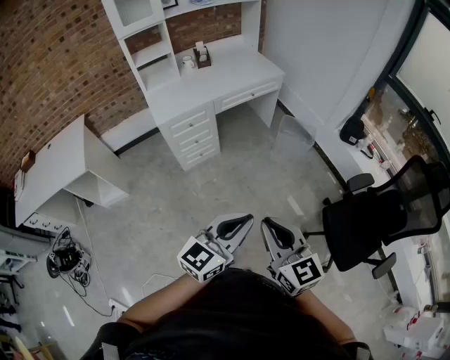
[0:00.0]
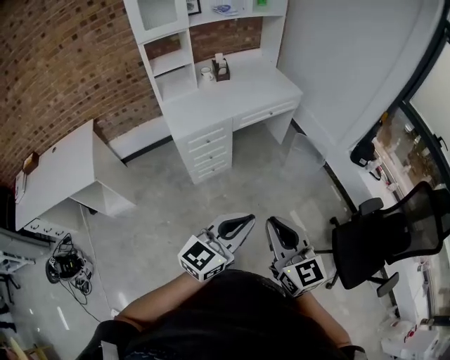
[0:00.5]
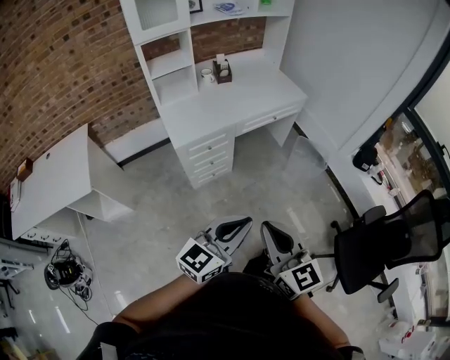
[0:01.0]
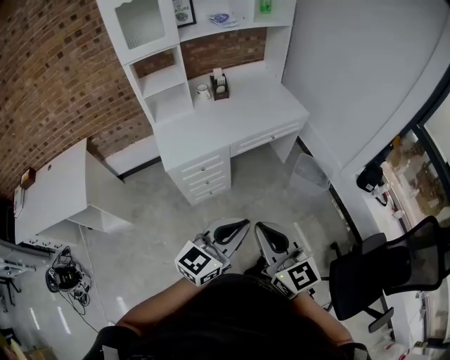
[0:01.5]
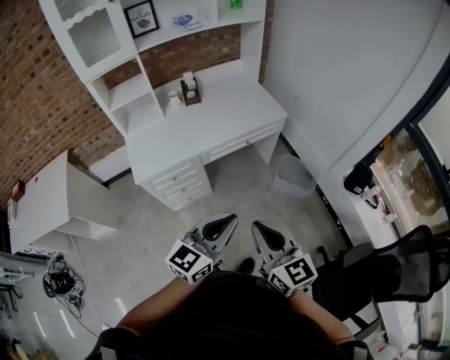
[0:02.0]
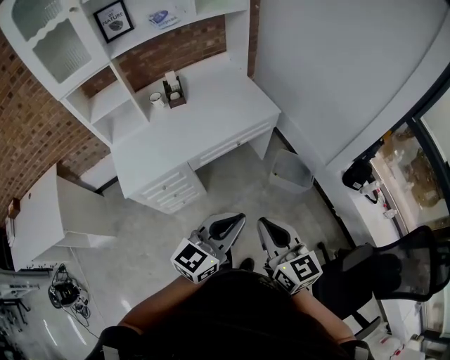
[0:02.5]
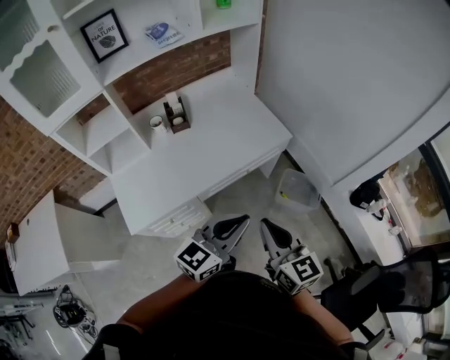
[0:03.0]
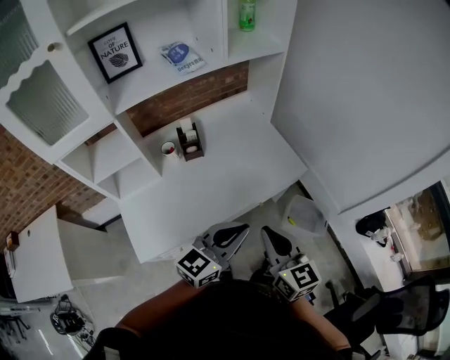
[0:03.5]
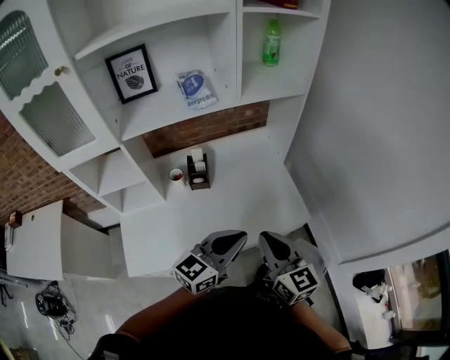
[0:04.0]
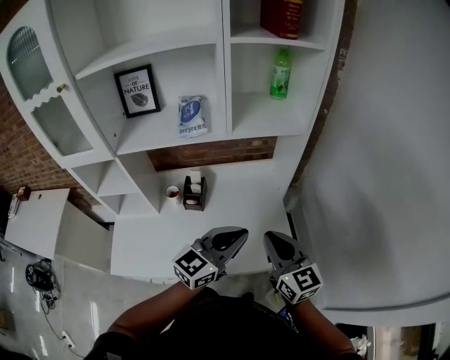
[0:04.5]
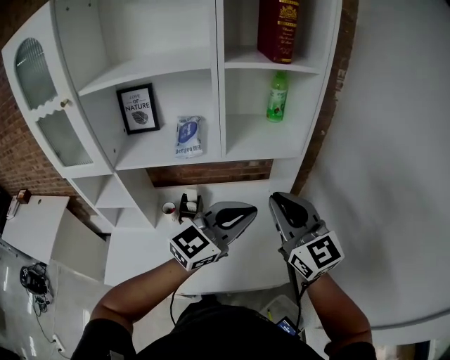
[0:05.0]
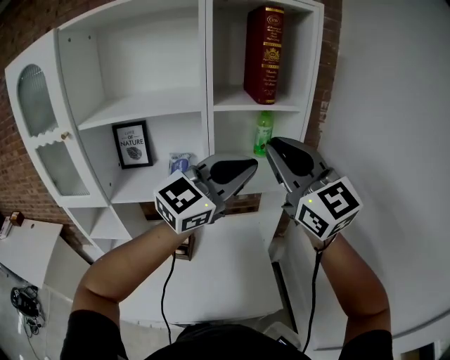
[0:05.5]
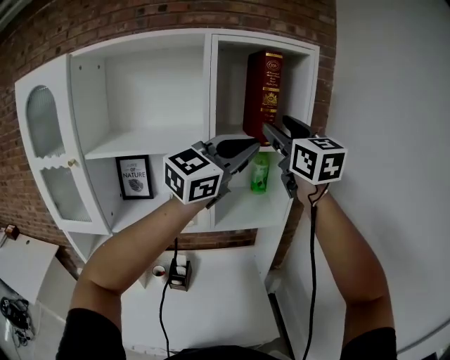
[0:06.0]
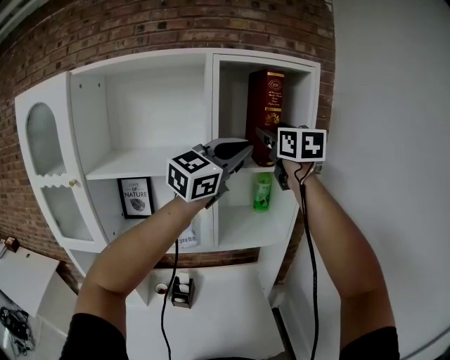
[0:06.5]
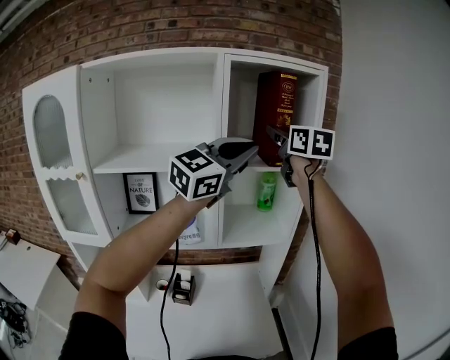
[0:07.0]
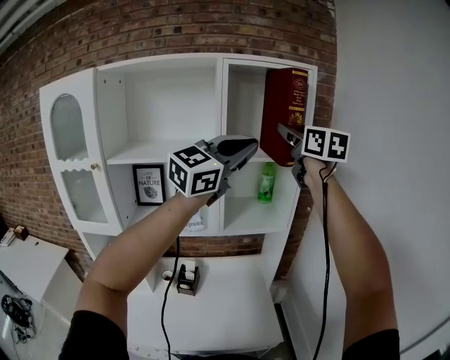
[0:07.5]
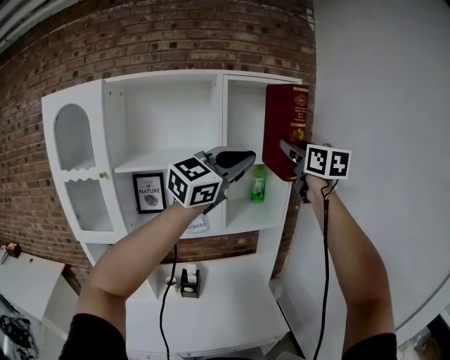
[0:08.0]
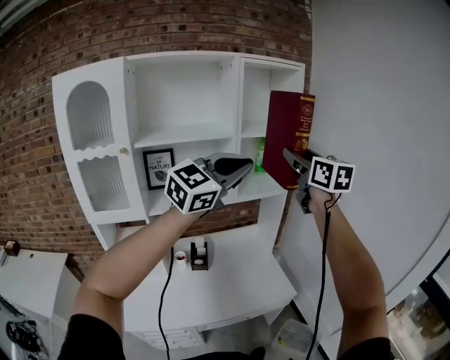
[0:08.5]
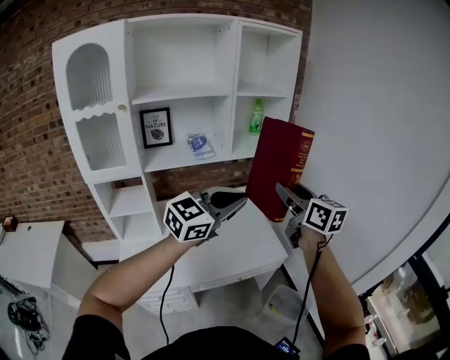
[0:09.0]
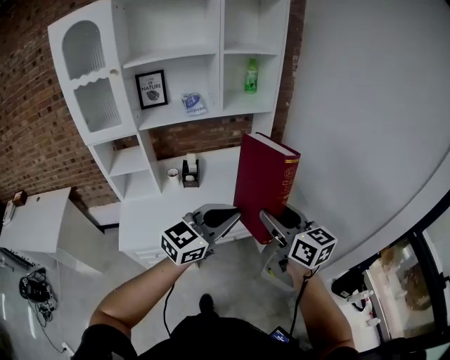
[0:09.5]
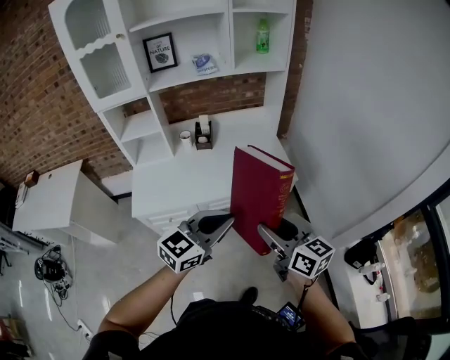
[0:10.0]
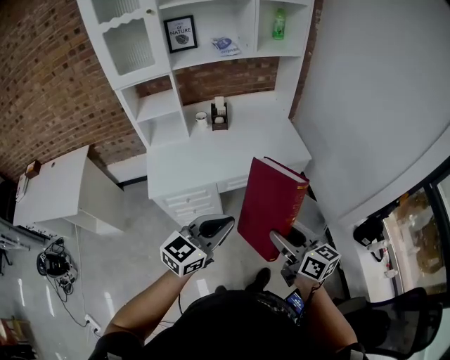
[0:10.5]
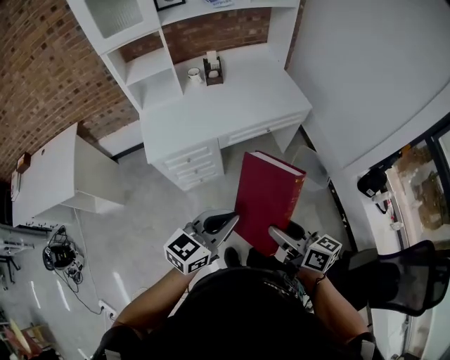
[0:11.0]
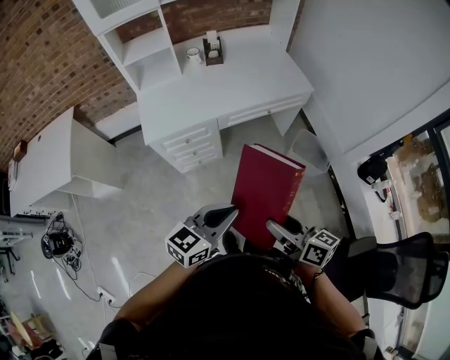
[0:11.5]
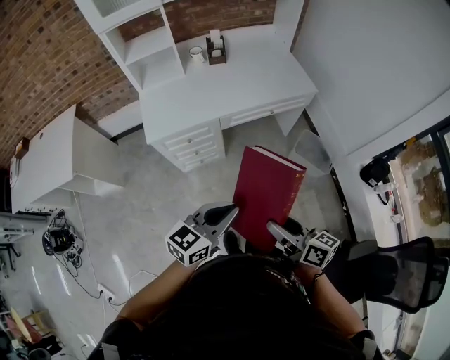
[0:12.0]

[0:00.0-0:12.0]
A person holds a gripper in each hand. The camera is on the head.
0.0 to 2.0 s: Both grippers travel together forward, about 40 cm.
2.0 to 4.0 s: Both grippers are carried forward, about 50 cm.
4.0 to 6.0 s: Both grippers move upward and forward, roughly 60 cm. The right gripper swivels roughly 30 degrees, and opens up. The left gripper turns by roughly 40 degrees.
6.0 to 8.0 s: The right gripper moves backward and to the right, approximately 10 cm, while the left gripper travels backward by some 15 cm.
8.0 to 10.0 s: Both grippers are carried backward, roughly 50 cm. Both grippers travel together downward, approximately 50 cm. The left gripper rotates roughly 40 degrees. Meanwhile the right gripper swivels some 40 degrees.
10.0 to 12.0 s: The right gripper heads backward, downward and to the left, covering some 35 cm, and swivels approximately 30 degrees, while the left gripper goes about 30 cm backward, to the left and downward.

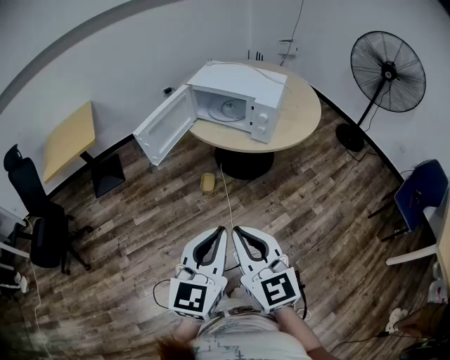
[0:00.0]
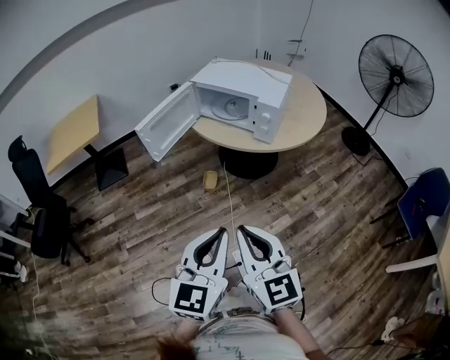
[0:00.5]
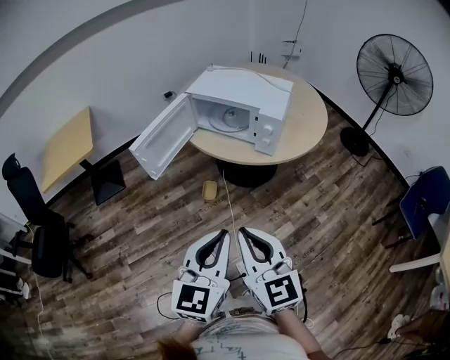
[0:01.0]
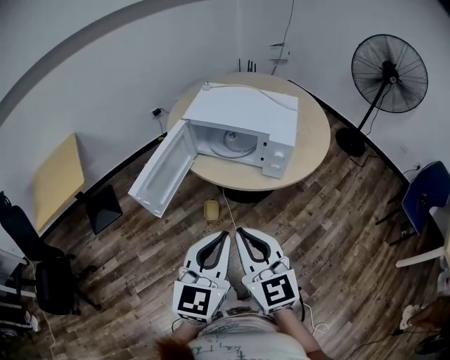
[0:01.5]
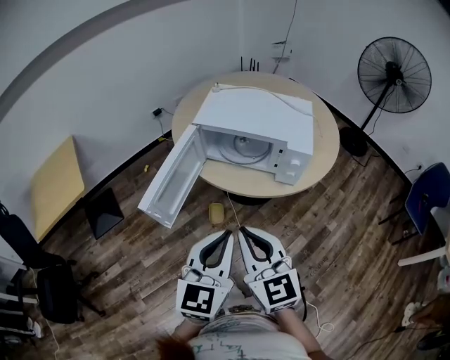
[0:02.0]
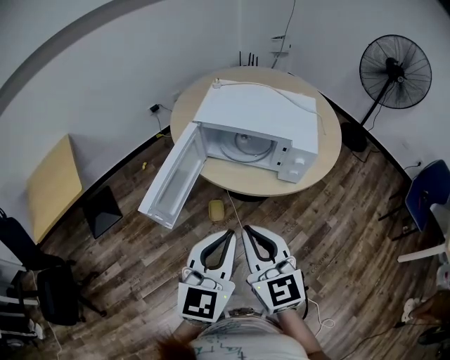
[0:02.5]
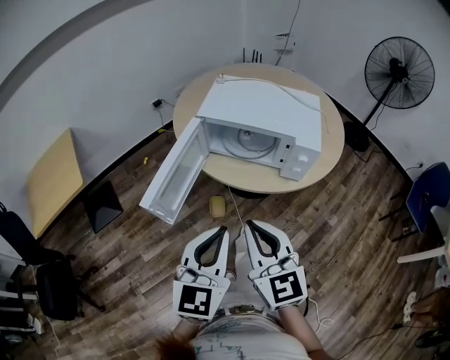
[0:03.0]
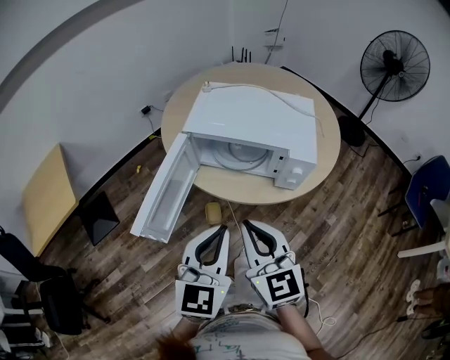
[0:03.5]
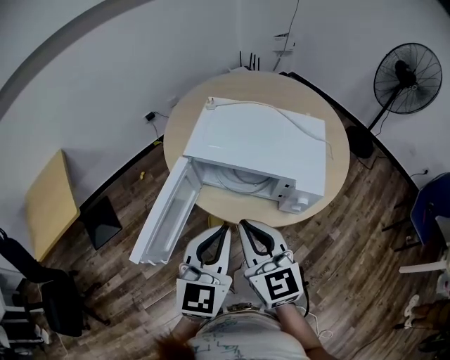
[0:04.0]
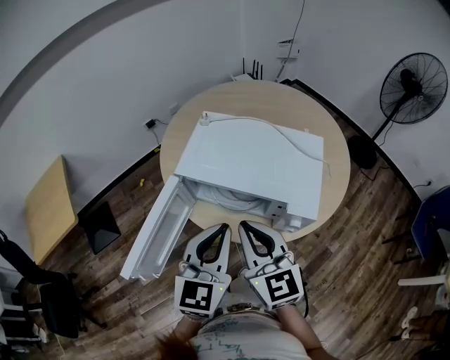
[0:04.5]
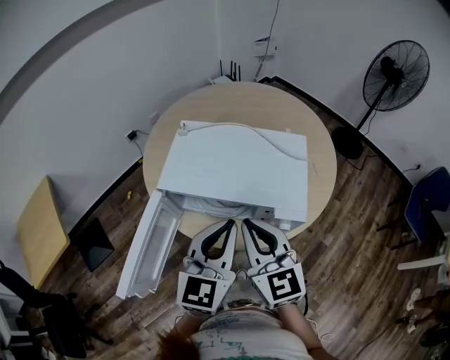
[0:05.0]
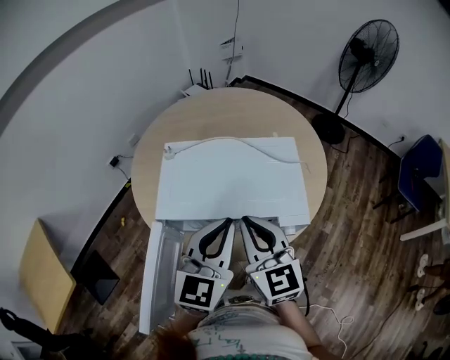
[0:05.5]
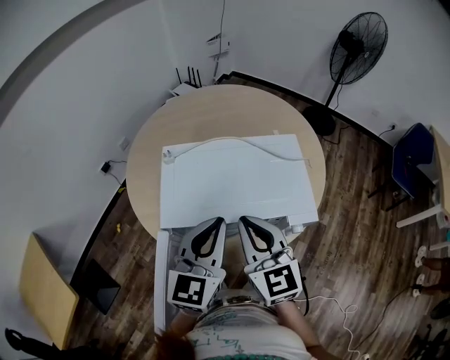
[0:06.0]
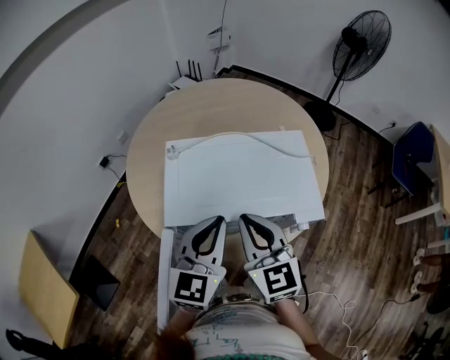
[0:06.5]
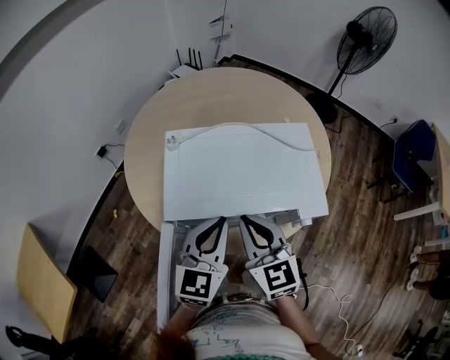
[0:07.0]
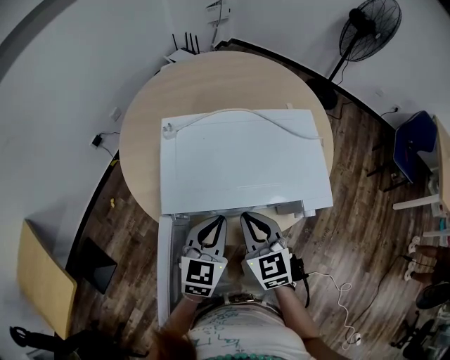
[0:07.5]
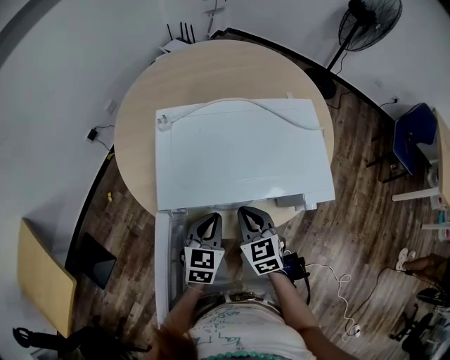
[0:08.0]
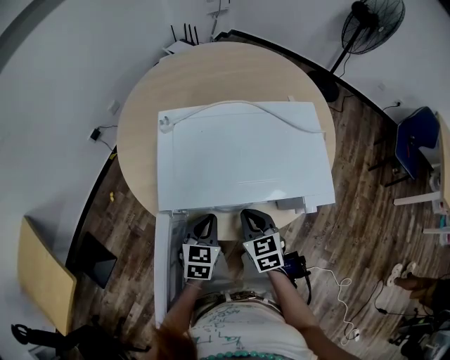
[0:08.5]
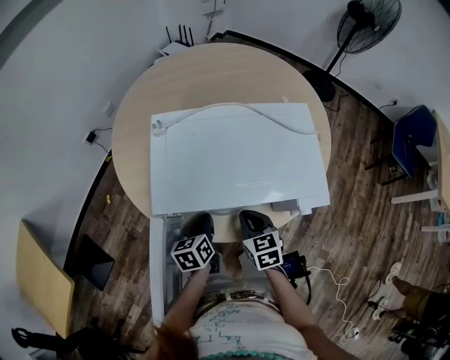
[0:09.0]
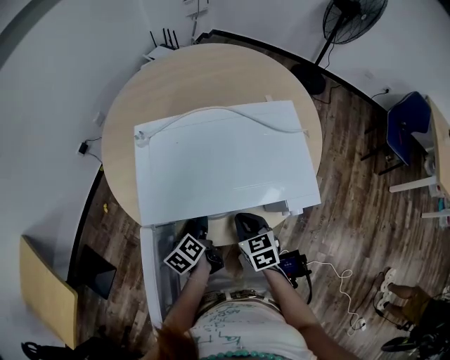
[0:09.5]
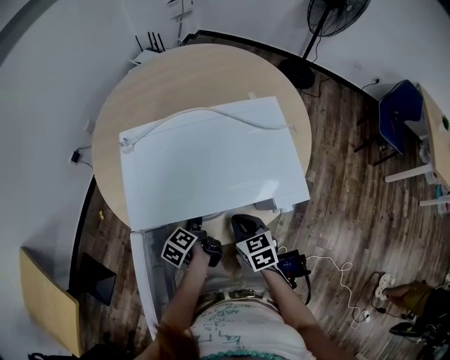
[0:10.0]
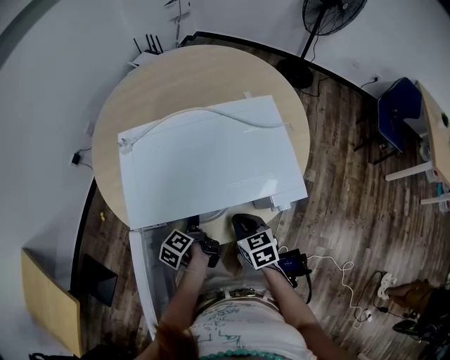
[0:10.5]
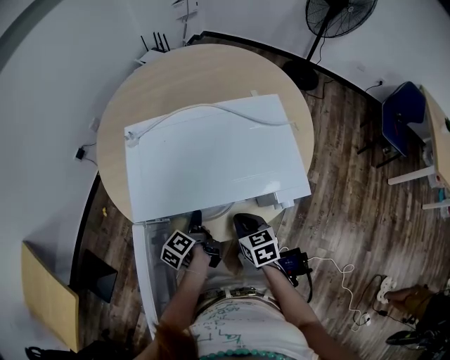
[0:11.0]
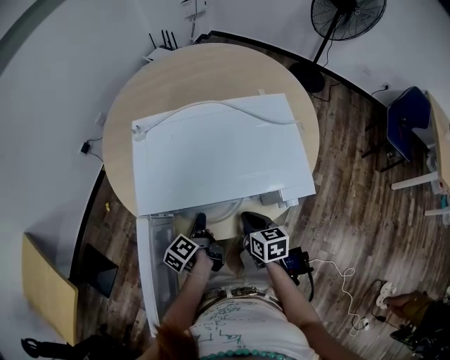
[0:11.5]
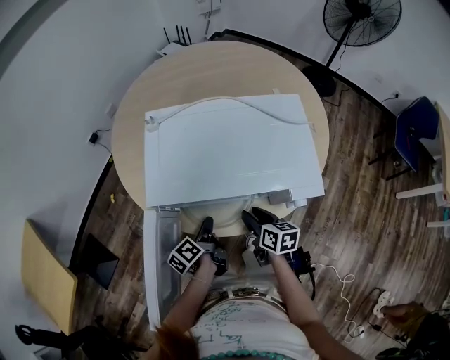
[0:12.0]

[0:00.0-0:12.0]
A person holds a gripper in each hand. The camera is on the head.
0.0 to 2.0 s: The grippers both shift forward by roughly 30 cm.
2.0 to 4.0 s: Both grippers travel together forward, about 20 cm.
4.0 to 6.0 s: The grippers both shift forward by about 15 cm. The left gripper swivels approximately 20 degrees; the right gripper swivels some 20 degrees.
6.0 to 8.0 s: Both grippers move downward, roughly 20 cm. The right gripper turns by approximately 30 degrees; the left gripper swivels roughly 30 degrees.
8.0 to 10.0 s: The right gripper is displaced to the right by roughly 5 cm. Meanwhile the left gripper heads downward, covering some 10 cm, twists approximately 80 degrees counterclockwise, seen from behind, and opens.
10.0 to 12.0 s: The left gripper shifts roughly 5 cm backward, and closes, while the right gripper changes its angle by approximately 30 degrees, and opens up.

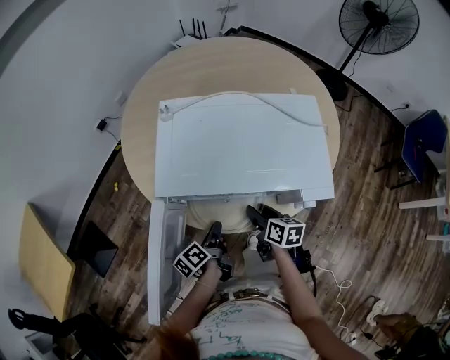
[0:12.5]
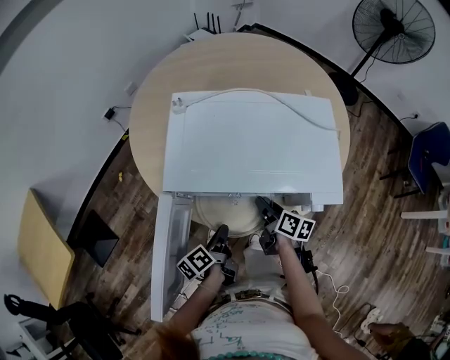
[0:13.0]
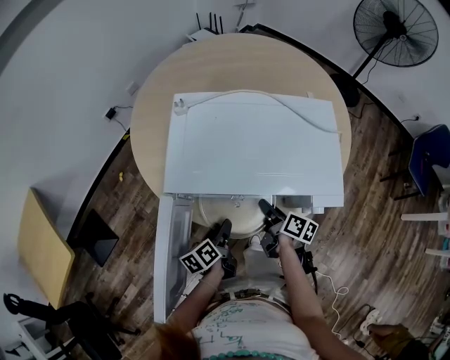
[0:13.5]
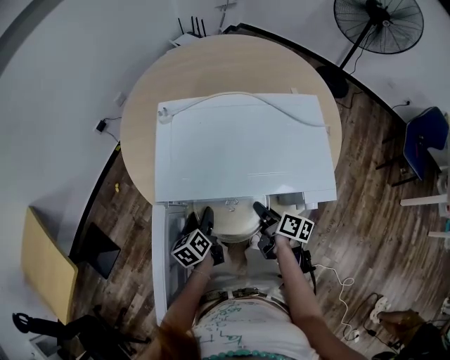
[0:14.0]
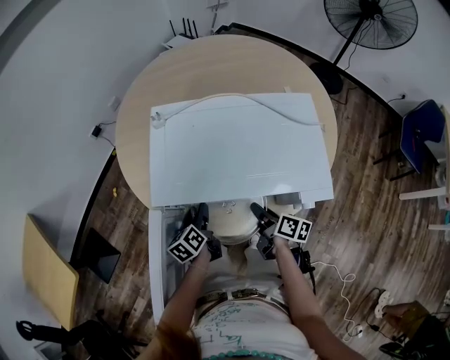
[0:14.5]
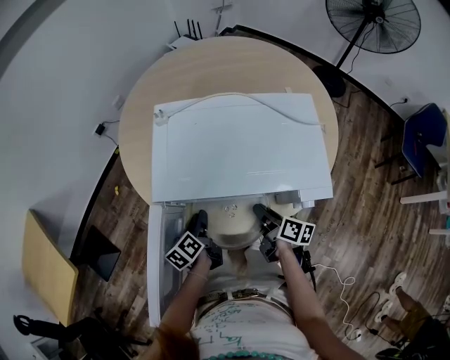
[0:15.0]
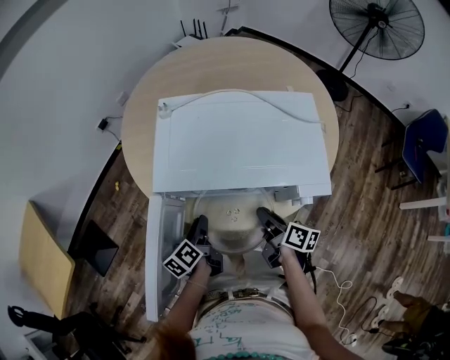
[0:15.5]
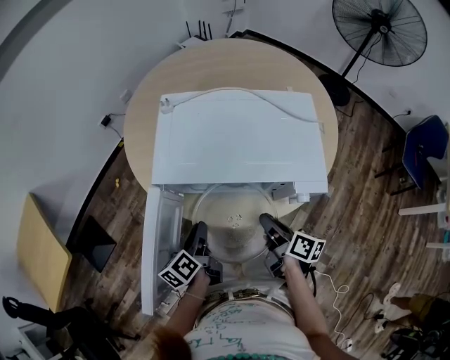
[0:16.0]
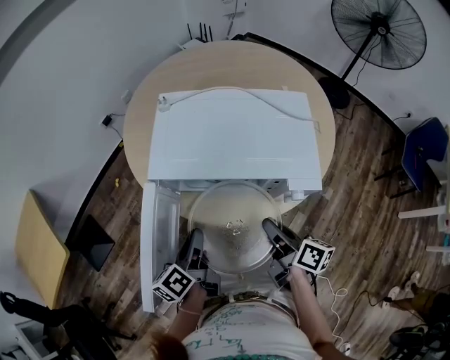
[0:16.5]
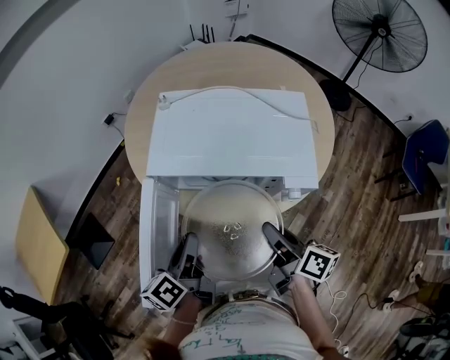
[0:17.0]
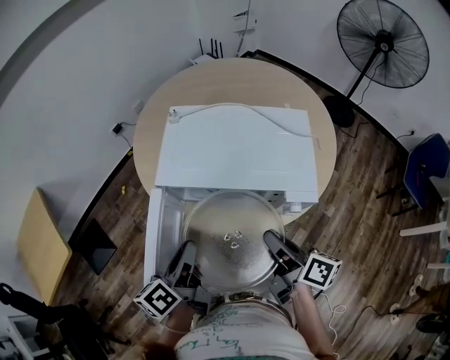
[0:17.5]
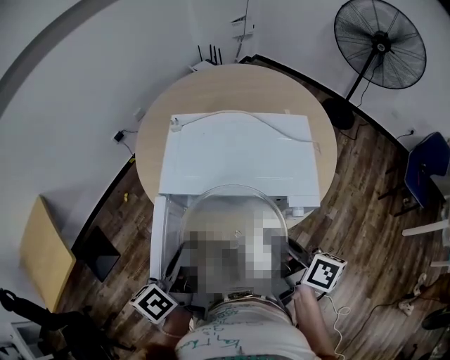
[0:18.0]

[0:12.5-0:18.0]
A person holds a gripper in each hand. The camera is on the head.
12.5 to 14.5 s: The right gripper rotates approximately 20 degrees; the left gripper moves forward, approximately 10 cm, swivels approximately 30 degrees, and opens.
14.5 to 16.0 s: The left gripper travels backward and upward by about 15 cm, and closes up. The right gripper travels upward and backward by approximately 10 cm.
16.0 to 18.0 s: Both grippers move upward, about 15 cm.
